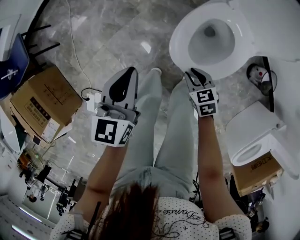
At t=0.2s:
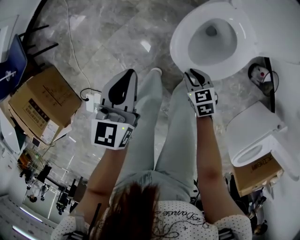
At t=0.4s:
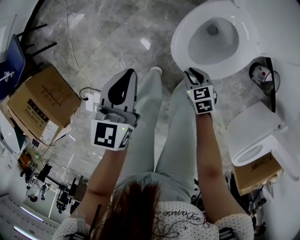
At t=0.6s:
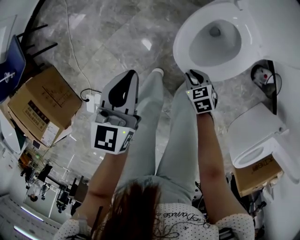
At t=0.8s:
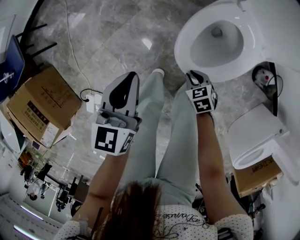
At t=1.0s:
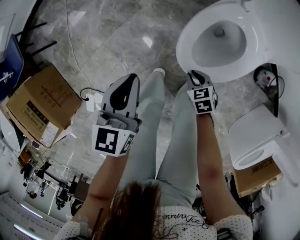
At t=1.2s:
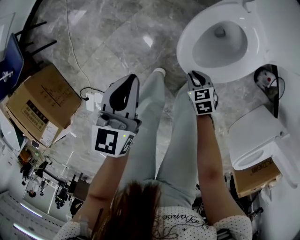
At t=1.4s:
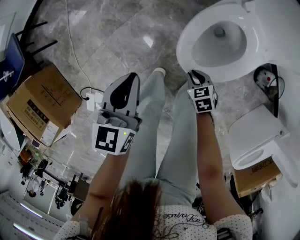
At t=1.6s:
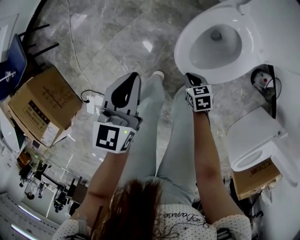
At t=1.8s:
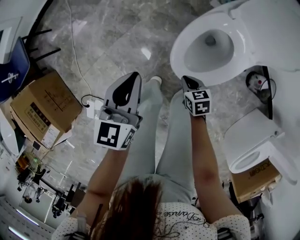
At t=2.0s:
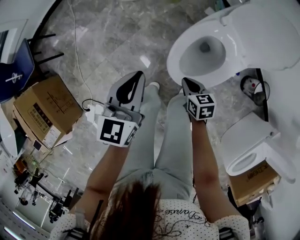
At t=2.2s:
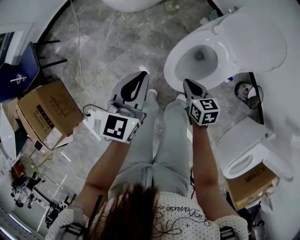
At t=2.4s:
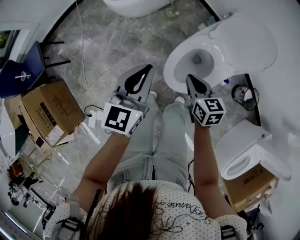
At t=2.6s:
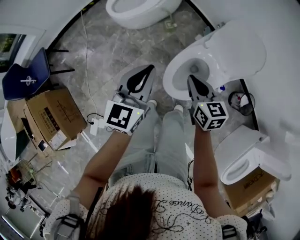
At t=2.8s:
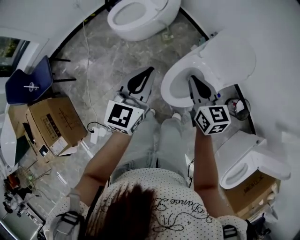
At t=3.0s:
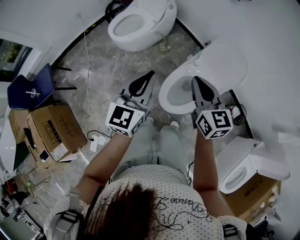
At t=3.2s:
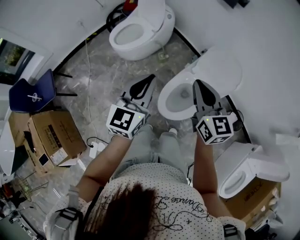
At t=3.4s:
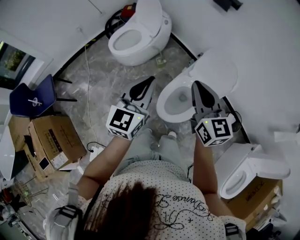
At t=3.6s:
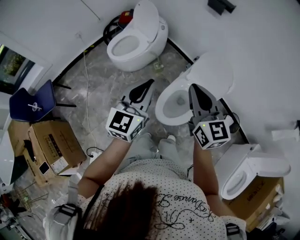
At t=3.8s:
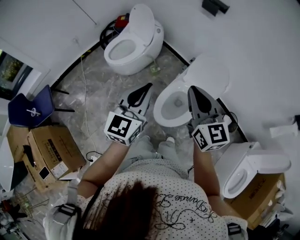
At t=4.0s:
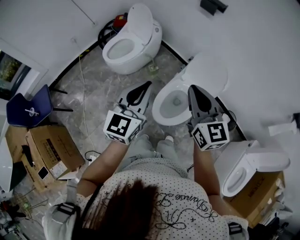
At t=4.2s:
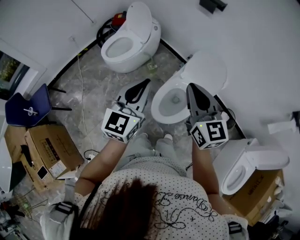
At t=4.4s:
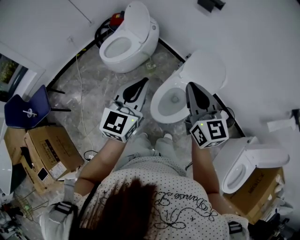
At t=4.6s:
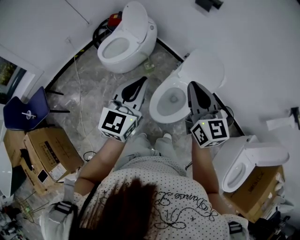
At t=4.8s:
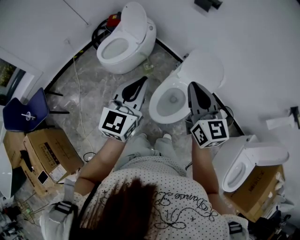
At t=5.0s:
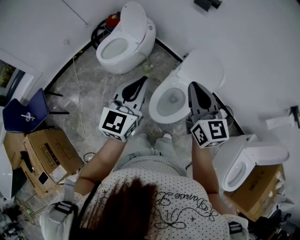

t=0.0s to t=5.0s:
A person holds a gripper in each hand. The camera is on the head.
t=0.0s to t=1.6s: The right gripper heads downward, covering some 10 cm.
t=1.6s to t=3.4s: The left gripper travels upward by approximately 40 cm, and turns by some 30 degrees. Meanwhile the right gripper shifts about 60 cm upward, and angles its fingers upward, by some 50 degrees.
t=3.4s to t=5.0s: The right gripper moves approximately 5 cm.

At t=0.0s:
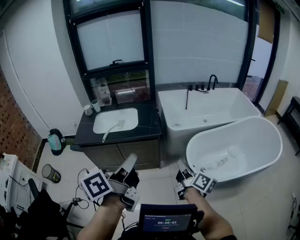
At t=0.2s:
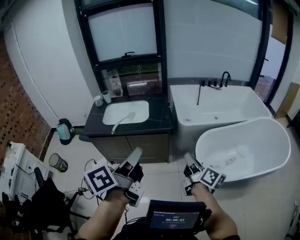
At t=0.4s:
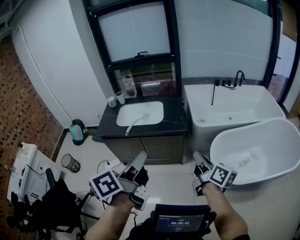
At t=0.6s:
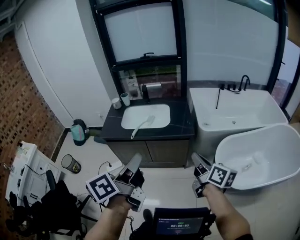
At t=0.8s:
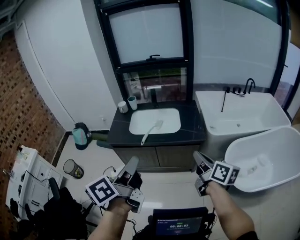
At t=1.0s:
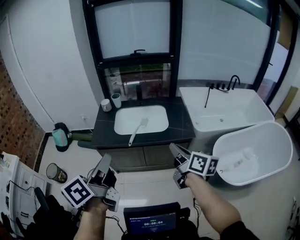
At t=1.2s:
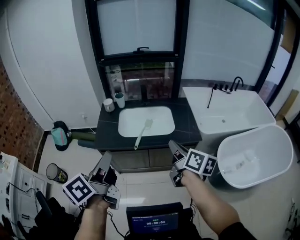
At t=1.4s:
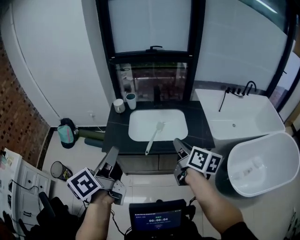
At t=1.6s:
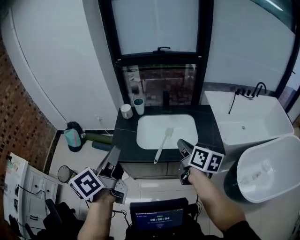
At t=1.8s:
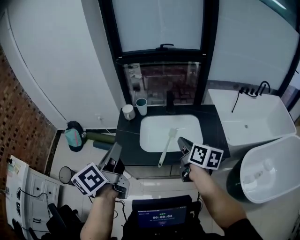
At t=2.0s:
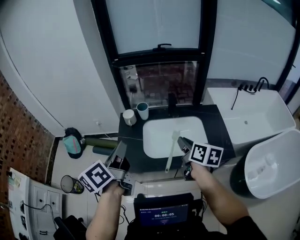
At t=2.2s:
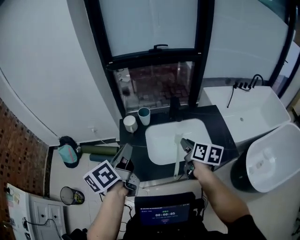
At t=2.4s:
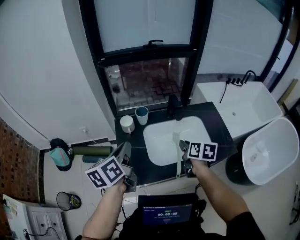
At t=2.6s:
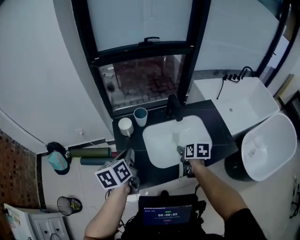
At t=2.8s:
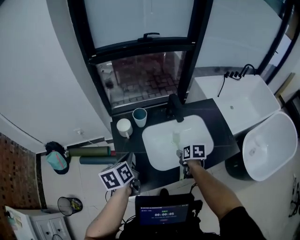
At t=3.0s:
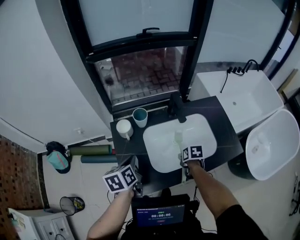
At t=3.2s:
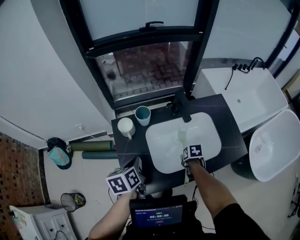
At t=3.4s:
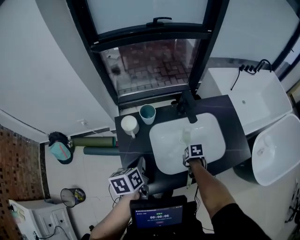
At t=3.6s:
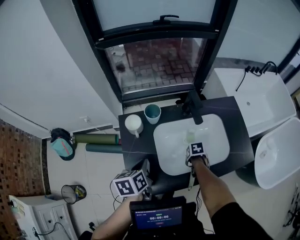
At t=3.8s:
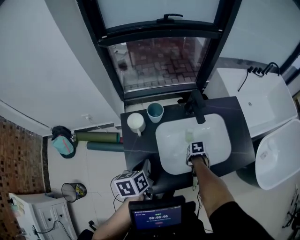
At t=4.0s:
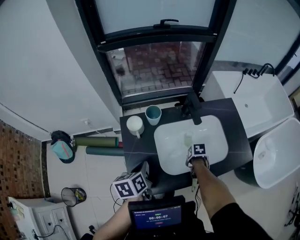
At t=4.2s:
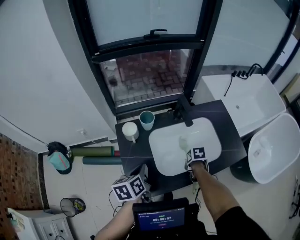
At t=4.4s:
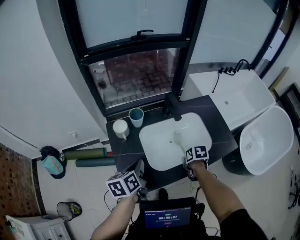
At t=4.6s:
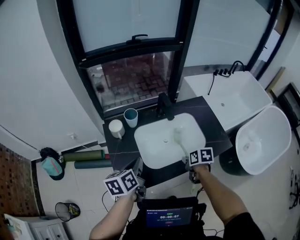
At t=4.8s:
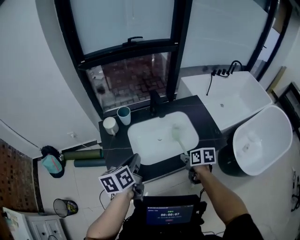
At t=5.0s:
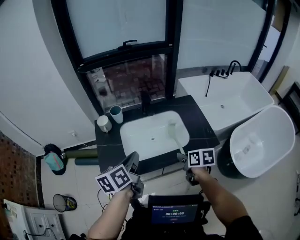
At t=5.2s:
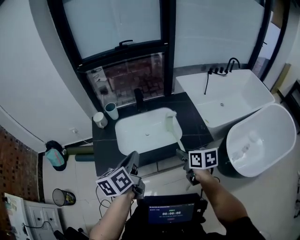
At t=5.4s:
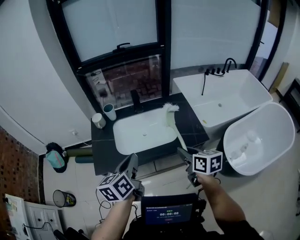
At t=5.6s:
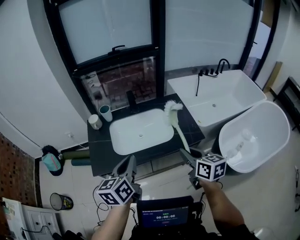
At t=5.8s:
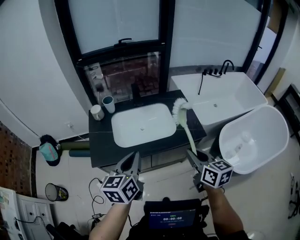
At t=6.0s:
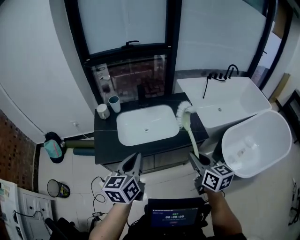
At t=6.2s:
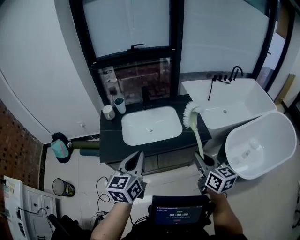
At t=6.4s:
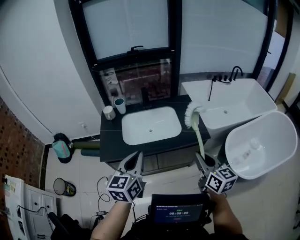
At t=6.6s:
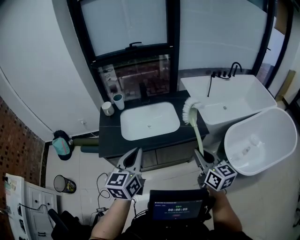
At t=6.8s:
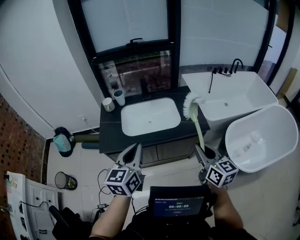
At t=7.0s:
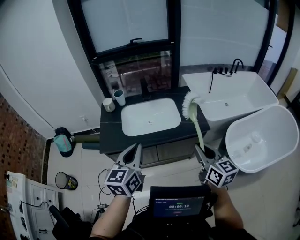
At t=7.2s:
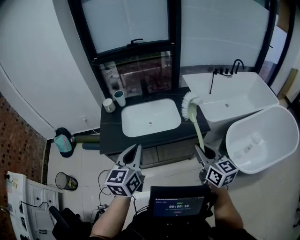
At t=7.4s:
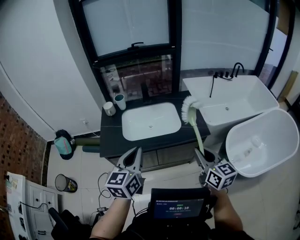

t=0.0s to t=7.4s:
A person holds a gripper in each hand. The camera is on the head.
t=0.0s to t=1.4s: Both grippers are carried to the left and forward, about 60 cm. The right gripper rotates roughly 20 degrees.
t=1.4s to t=3.0s: The pair of grippers is taken forward and to the left, roughly 50 cm. The grippers both shift downward by about 30 cm. The left gripper tilts its fingers some 40 degrees downward; the right gripper tilts its fingers roughly 60 degrees downward, and opens up.
t=3.0s to t=4.4s: The right gripper moves some 10 cm downward and comes back, and closes.
t=4.4s to t=6.0s: The pair of grippers is taken backward and to the right, some 50 cm. The right gripper moves upward, some 30 cm, and tilts its fingers roughly 50 degrees upward. The left gripper goes some 15 cm upward, and changes its angle by about 30 degrees.
t=6.0s to t=7.4s: The right gripper heads to the right, covering approximately 5 cm; the left gripper ends up approximately 5 cm from where it was.

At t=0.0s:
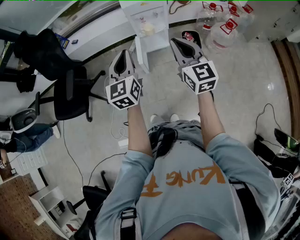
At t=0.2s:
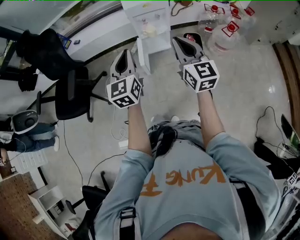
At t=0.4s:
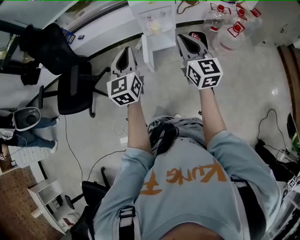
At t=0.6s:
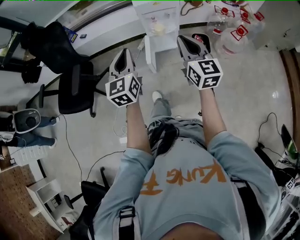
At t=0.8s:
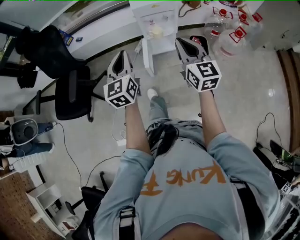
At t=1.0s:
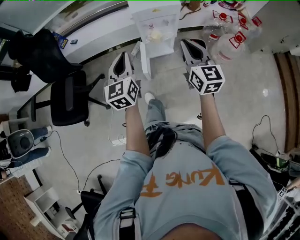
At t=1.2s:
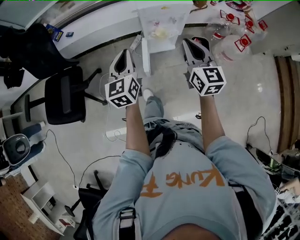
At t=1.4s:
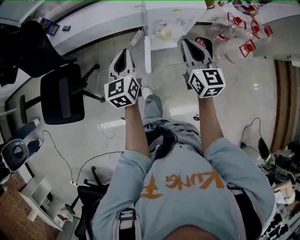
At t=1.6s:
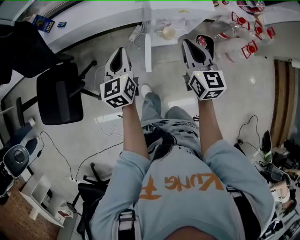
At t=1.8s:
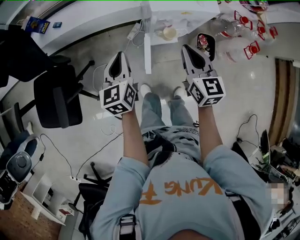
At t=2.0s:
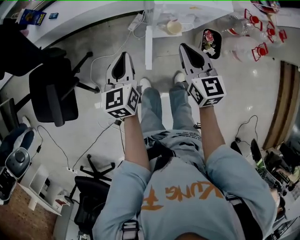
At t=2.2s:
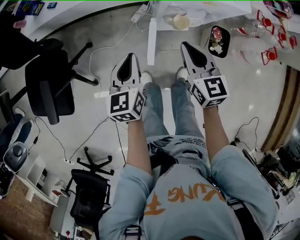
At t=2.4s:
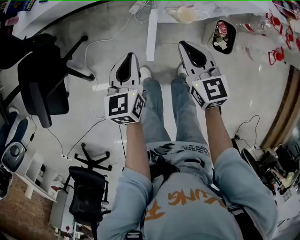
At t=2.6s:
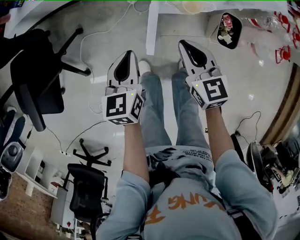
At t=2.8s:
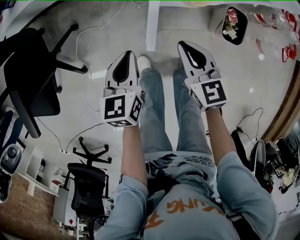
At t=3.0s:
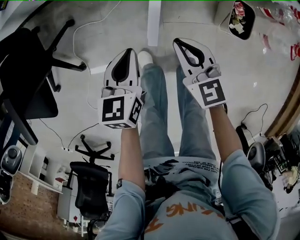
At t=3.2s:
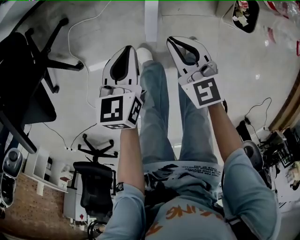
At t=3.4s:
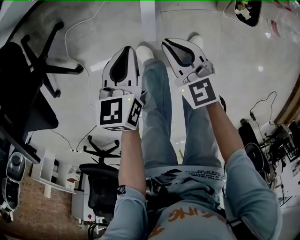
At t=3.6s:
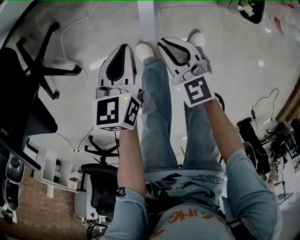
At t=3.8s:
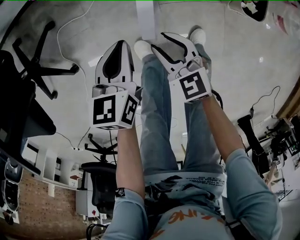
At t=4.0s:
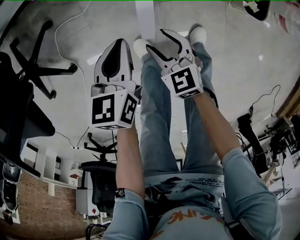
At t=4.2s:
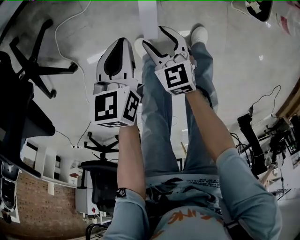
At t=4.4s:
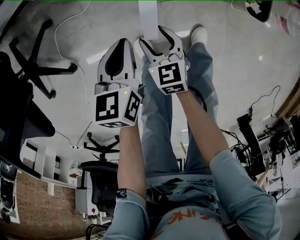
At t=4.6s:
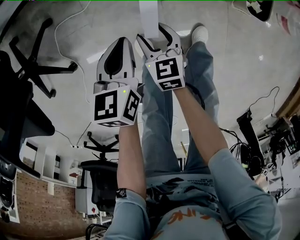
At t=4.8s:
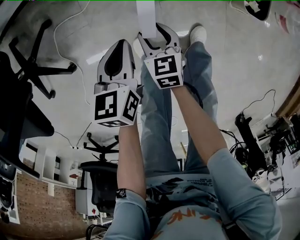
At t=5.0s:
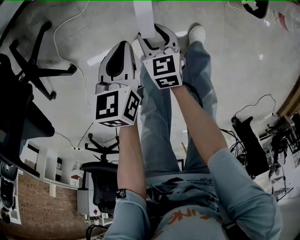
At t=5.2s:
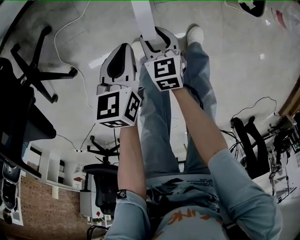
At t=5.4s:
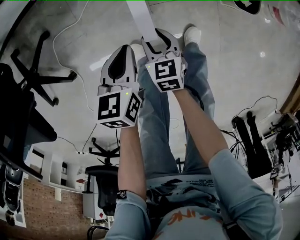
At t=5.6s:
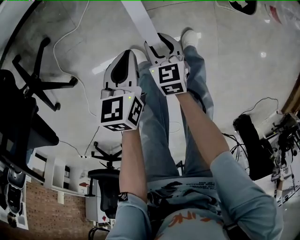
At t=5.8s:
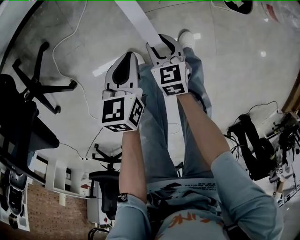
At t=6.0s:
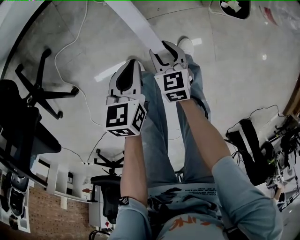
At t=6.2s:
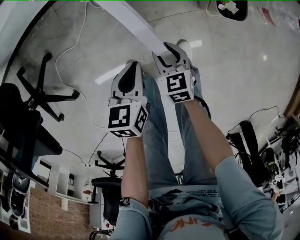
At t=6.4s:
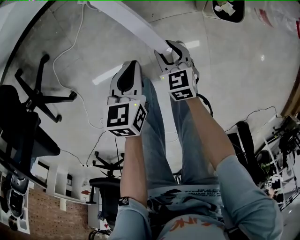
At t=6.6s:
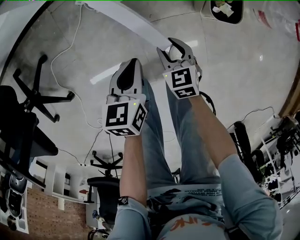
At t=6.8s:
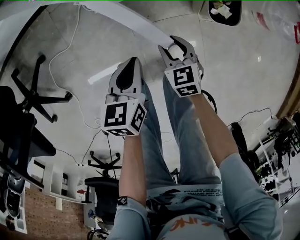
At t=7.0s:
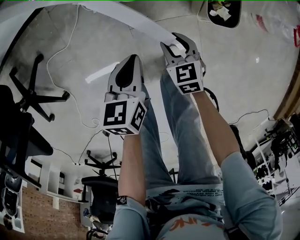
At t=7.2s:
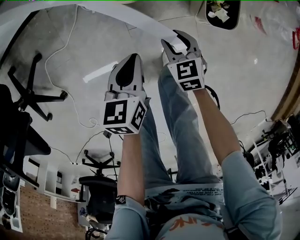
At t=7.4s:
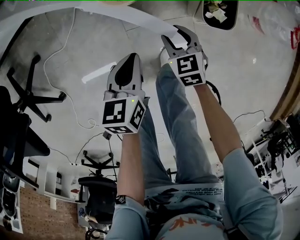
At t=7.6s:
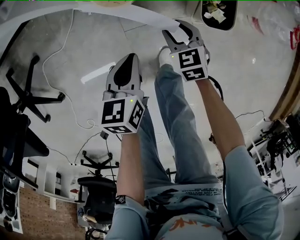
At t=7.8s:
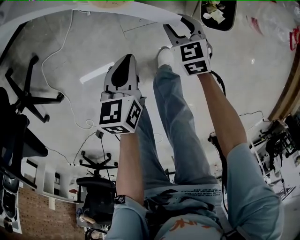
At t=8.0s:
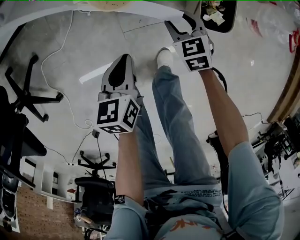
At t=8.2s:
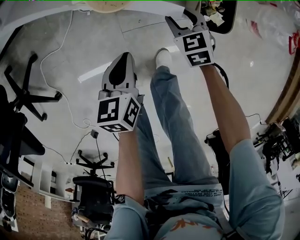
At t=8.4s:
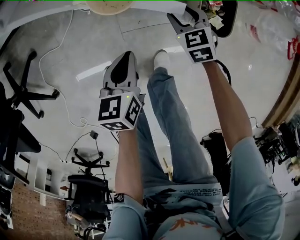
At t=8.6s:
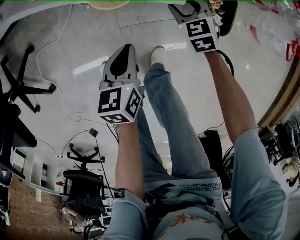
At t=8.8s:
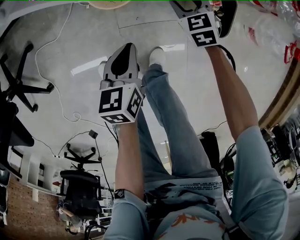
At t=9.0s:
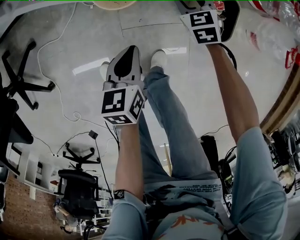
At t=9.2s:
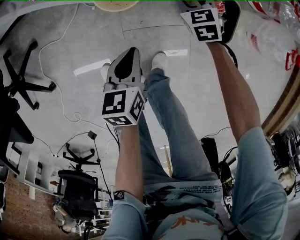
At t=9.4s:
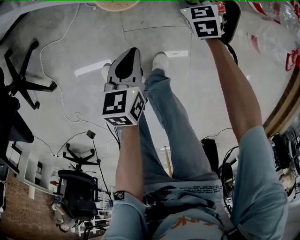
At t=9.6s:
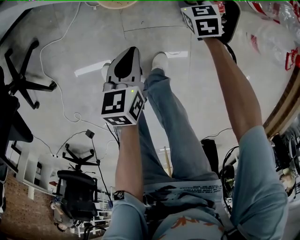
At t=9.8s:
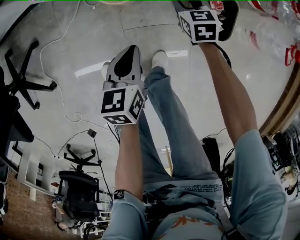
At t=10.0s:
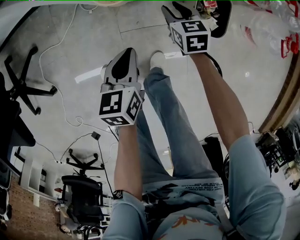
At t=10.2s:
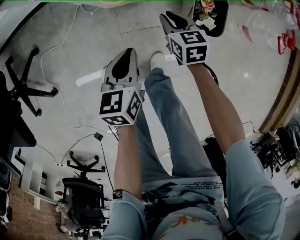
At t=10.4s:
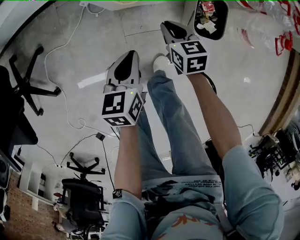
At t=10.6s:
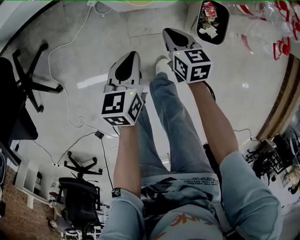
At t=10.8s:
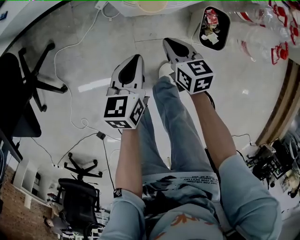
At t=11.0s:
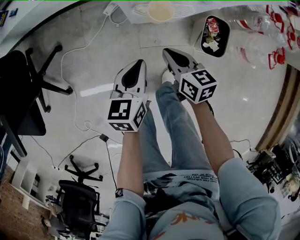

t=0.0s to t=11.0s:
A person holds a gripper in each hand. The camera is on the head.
t=0.0s to t=1.6s: The right gripper travels forward by about 30 cm; the left gripper moves forward, downward and to the left, about 35 cm.
t=1.6s to t=3.2s: The grippers both shift downward by approximately 35 cm. The right gripper turns by roughly 30 degrees. Meanwhile the left gripper rotates about 20 degrees.
t=3.2s to t=4.8s: The left gripper shifts roughly 10 cm downward. The right gripper moves downward, some 20 cm, swivels about 30 degrees, and opens up.
t=4.8s to t=6.2s: Both grippers travel together to the right, approximately 15 cm.
t=6.2s to t=7.8s: The left gripper travels forward and to the right by roughly 10 cm; the right gripper moves forward and to the right, about 20 cm.
t=7.8s to t=9.4s: The right gripper heads forward, covering about 15 cm.
t=9.4s to t=11.0s: The left gripper shifts approximately 15 cm upward and to the left, while the right gripper travels upward, backward and to the left by roughly 30 cm, turns by roughly 40 degrees, and closes up.
